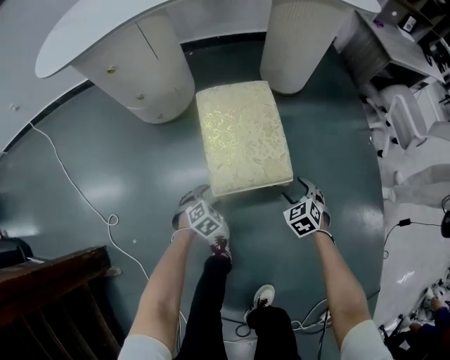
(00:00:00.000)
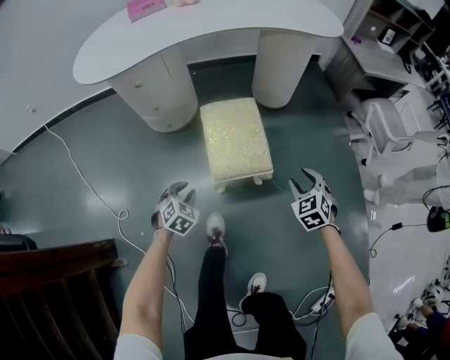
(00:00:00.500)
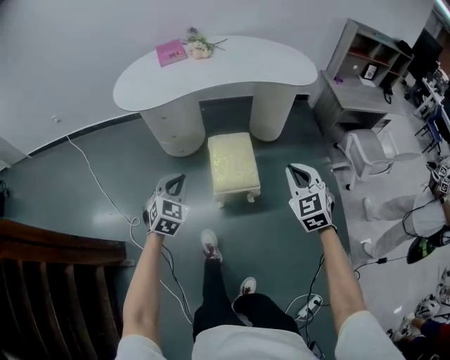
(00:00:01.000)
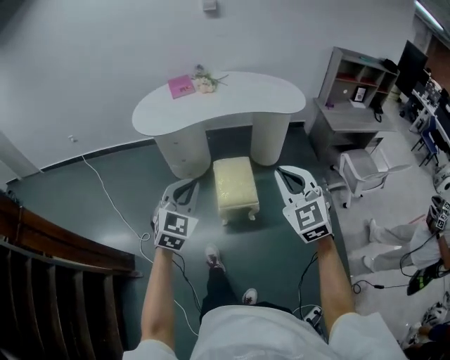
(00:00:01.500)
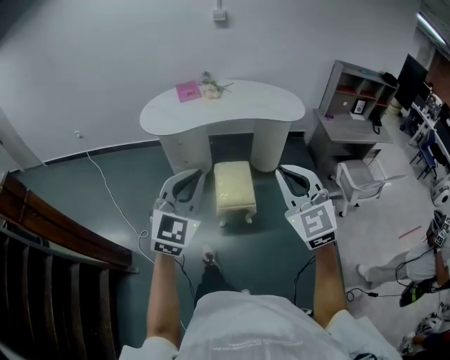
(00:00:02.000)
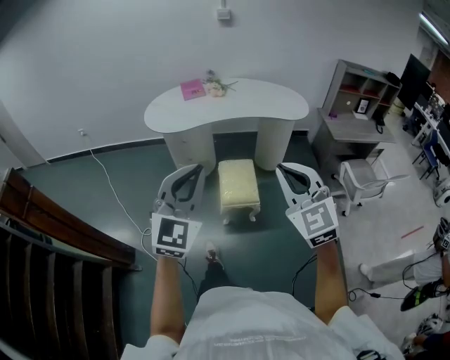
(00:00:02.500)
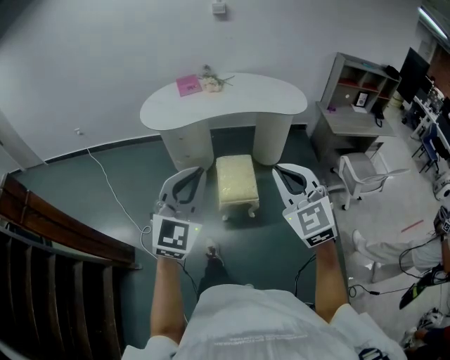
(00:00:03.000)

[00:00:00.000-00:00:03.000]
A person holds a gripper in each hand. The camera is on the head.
00:00:00.000 to 00:00:01.500: The two grippers go approximately 80 cm upward. The right gripper angles its fingers upward, by approximately 50 degrees, and closes, while the left gripper angles its fingers upward, by approximately 50 degrees, and closes.
00:00:01.500 to 00:00:03.000: The left gripper moves upward and backward, approximately 15 cm. Meanwhile the right gripper is displaced backward and upward by some 10 cm.

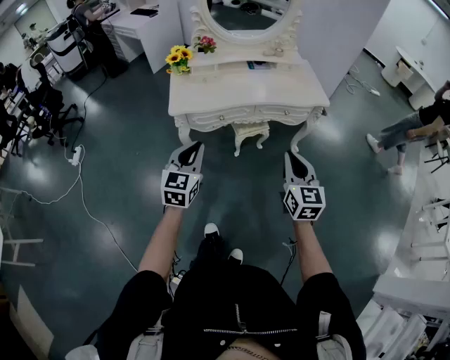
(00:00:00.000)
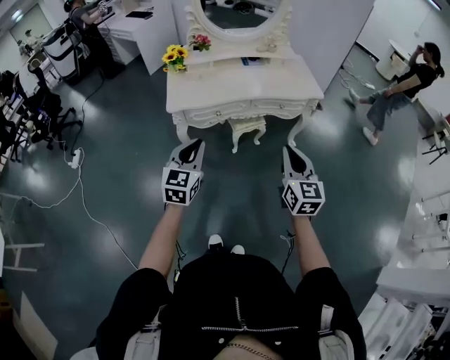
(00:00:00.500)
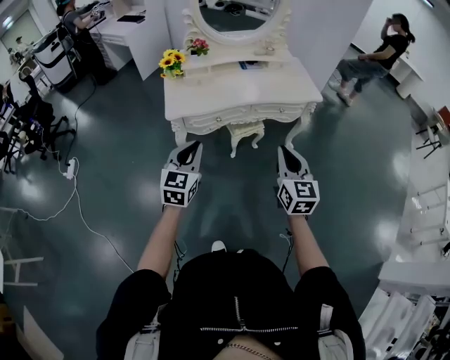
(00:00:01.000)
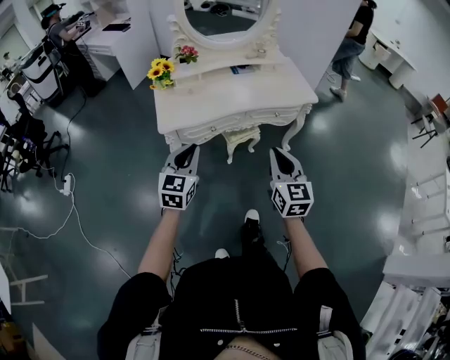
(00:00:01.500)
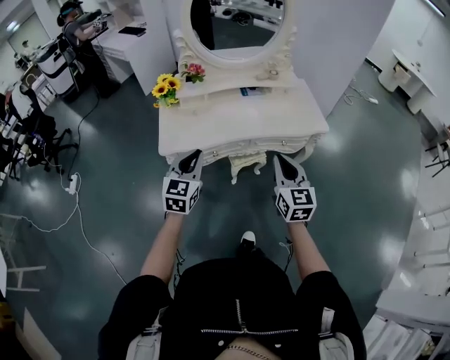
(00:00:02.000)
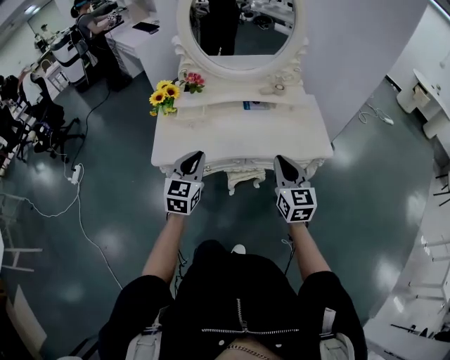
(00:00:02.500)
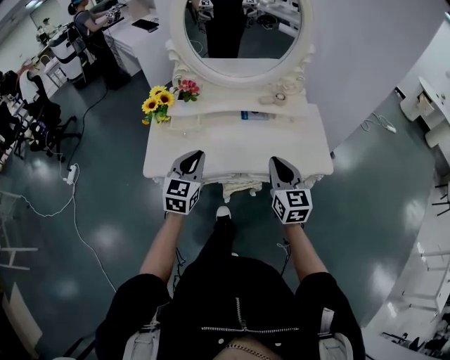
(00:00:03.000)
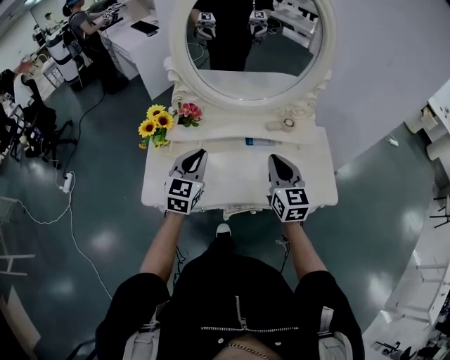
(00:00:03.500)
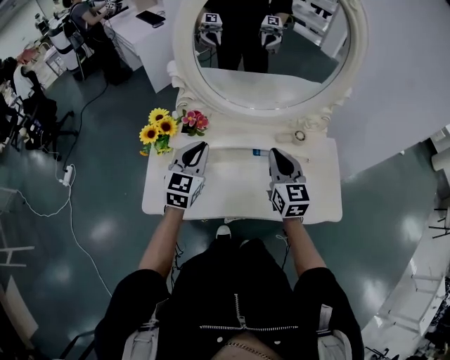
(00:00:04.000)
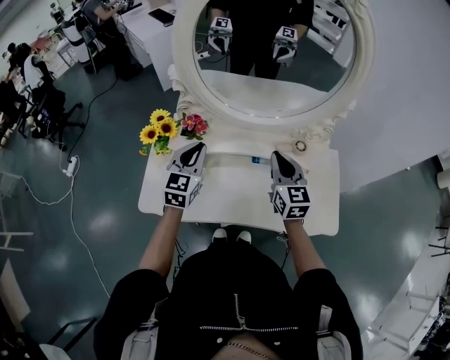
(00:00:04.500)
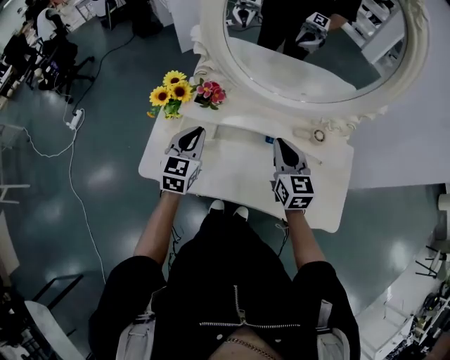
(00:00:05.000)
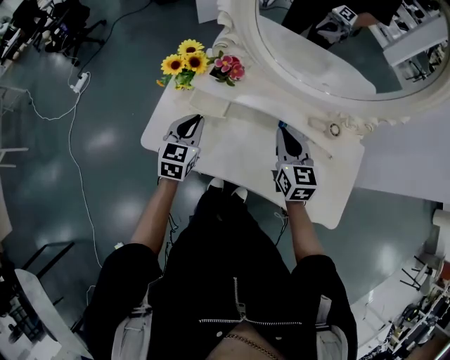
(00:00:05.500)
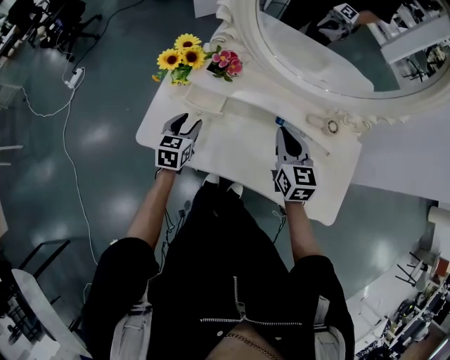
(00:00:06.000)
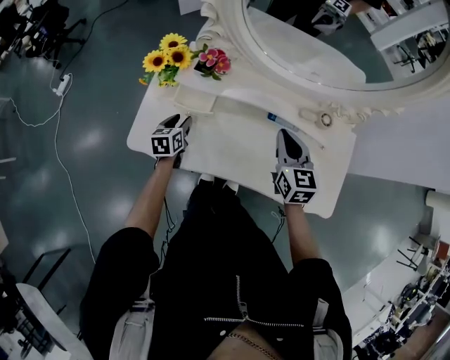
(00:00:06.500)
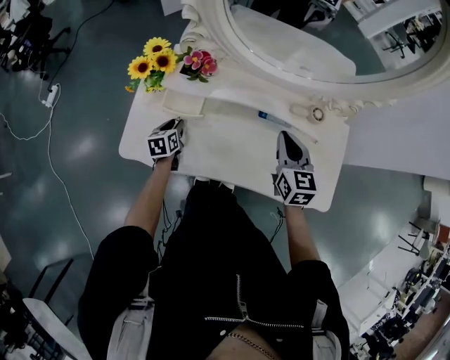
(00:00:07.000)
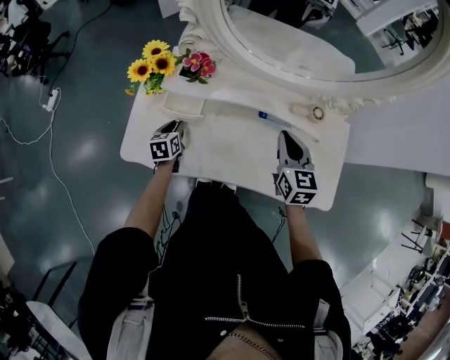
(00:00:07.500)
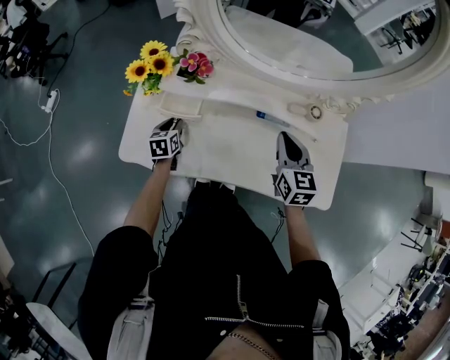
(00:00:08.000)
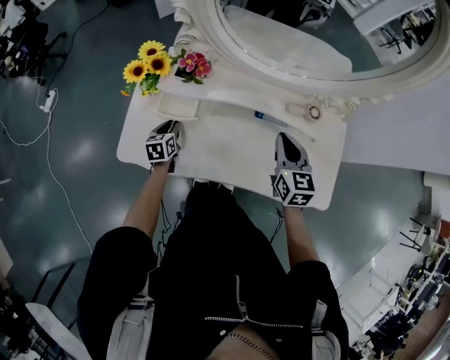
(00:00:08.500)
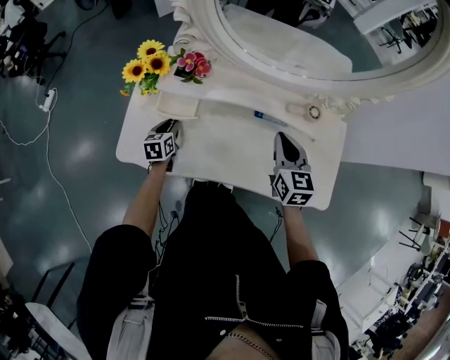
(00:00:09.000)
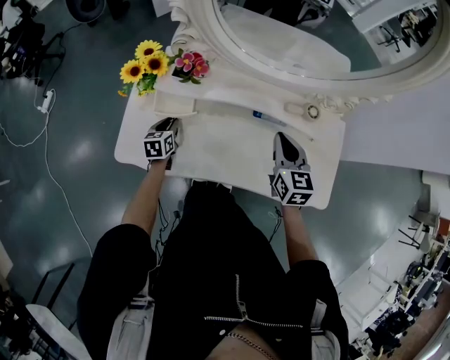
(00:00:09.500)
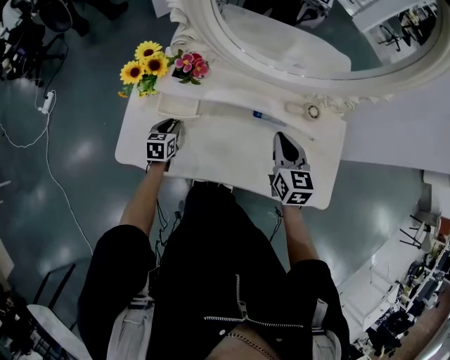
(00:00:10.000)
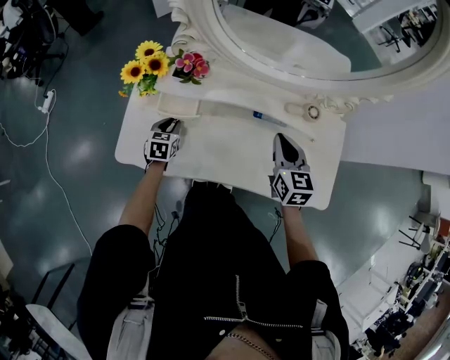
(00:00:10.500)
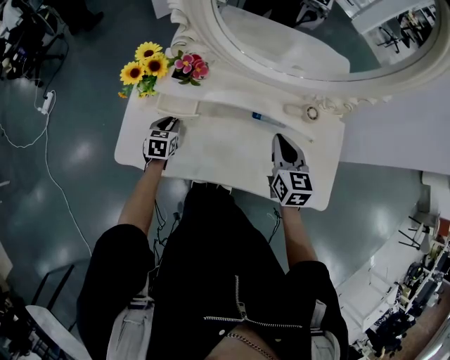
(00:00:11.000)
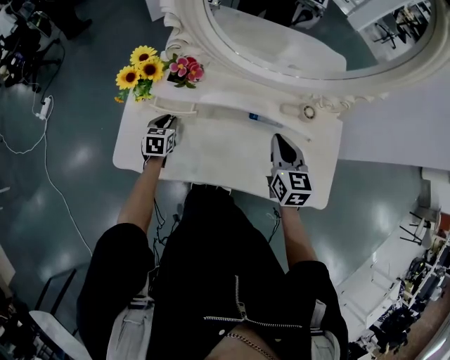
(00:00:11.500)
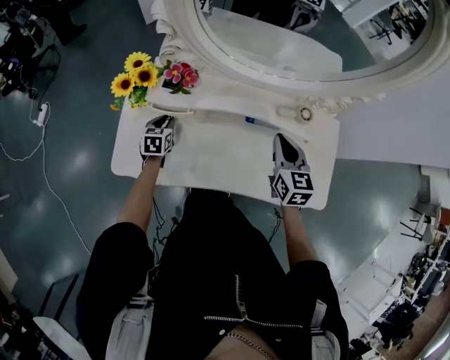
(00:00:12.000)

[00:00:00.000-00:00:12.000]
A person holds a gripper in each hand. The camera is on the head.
00:00:00.000 to 00:00:02.000: The grippers both shift forward by some 20 cm.
00:00:02.000 to 00:00:04.000: The two grippers travel together, forward, roughly 40 cm.
00:00:04.000 to 00:00:06.000: The right gripper goes about 10 cm downward. The left gripper is displaced downward and to the left by about 20 cm, rotates about 30 degrees, and opens up.
00:00:06.000 to 00:00:08.000: The right gripper is displaced to the right by about 5 cm. Meanwhile the left gripper is displaced downward by about 10 cm.
00:00:08.000 to 00:00:12.000: The grippers move only a little.

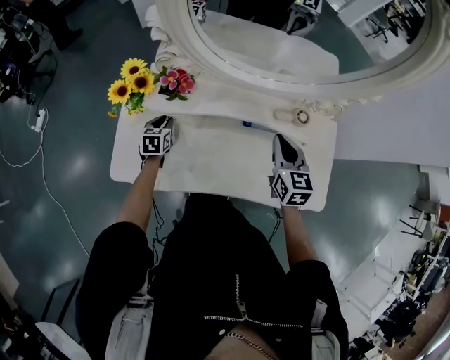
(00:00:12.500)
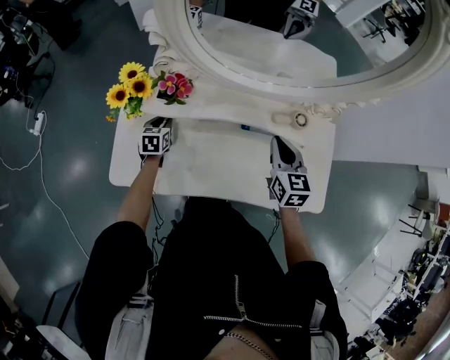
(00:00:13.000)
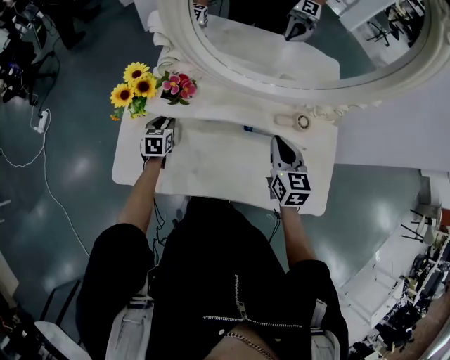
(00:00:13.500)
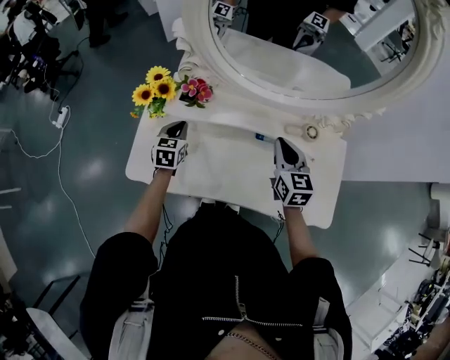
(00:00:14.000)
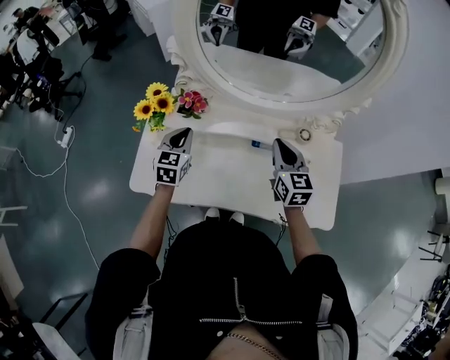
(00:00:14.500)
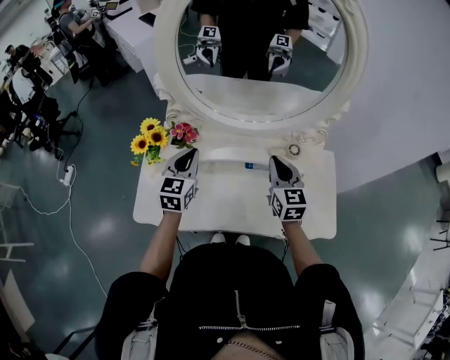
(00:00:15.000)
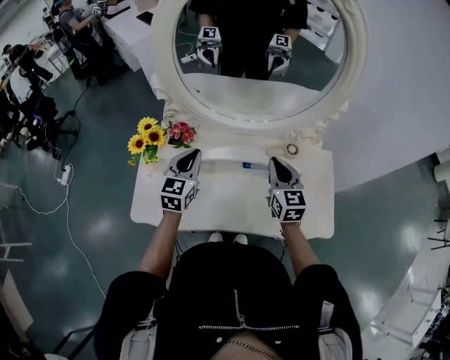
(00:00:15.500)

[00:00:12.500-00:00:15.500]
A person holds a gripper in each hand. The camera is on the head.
00:00:12.500 to 00:00:14.000: The left gripper heads upward, covering about 10 cm.
00:00:14.000 to 00:00:15.500: The left gripper travels upward and to the right by about 20 cm, and changes its angle by roughly 20 degrees. Meanwhile the right gripper ends up some 5 cm from where it was.

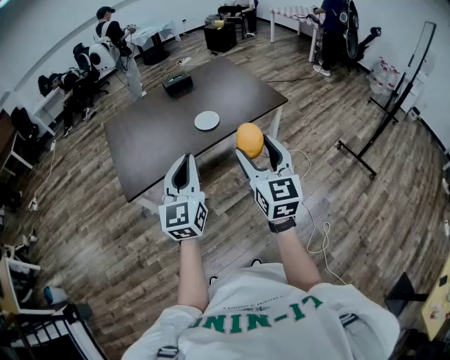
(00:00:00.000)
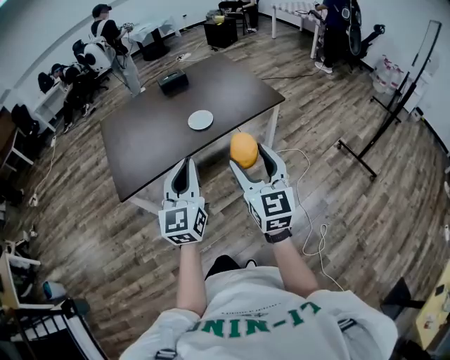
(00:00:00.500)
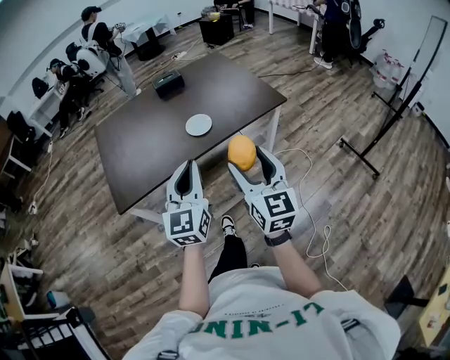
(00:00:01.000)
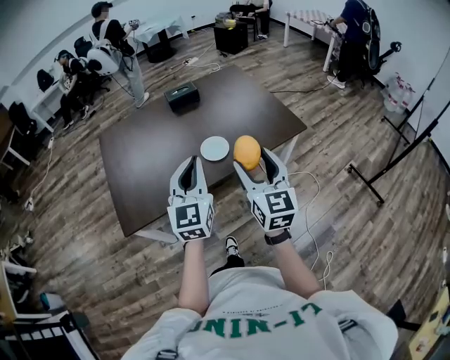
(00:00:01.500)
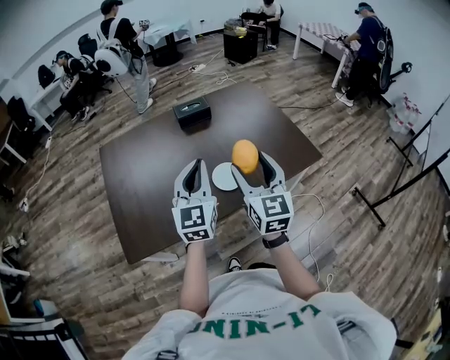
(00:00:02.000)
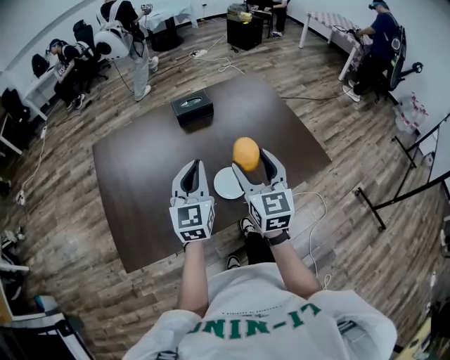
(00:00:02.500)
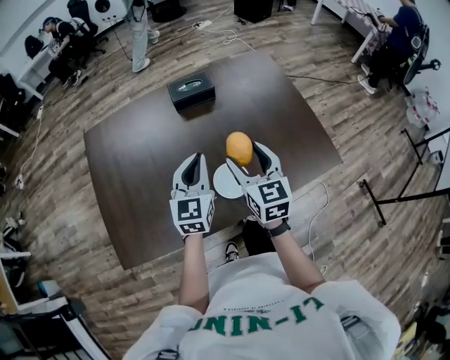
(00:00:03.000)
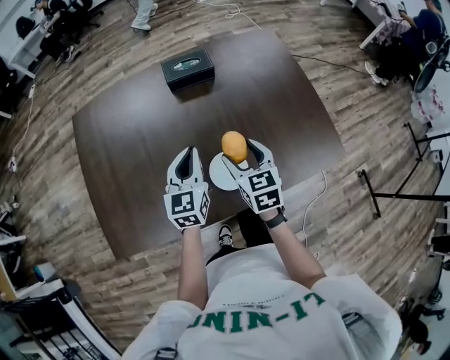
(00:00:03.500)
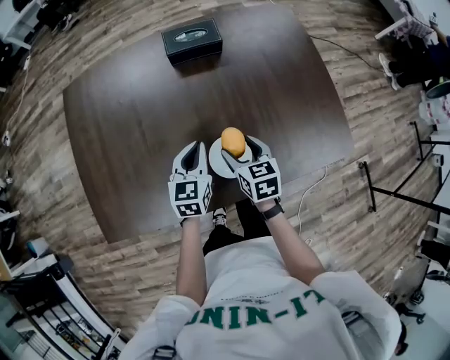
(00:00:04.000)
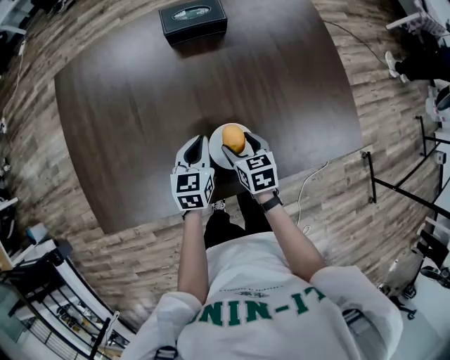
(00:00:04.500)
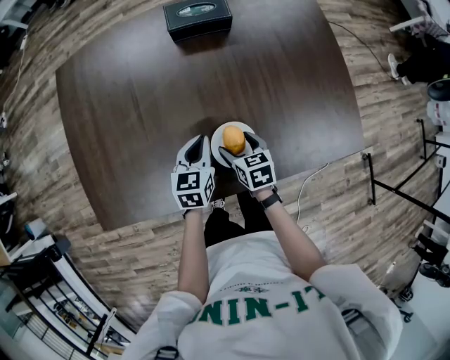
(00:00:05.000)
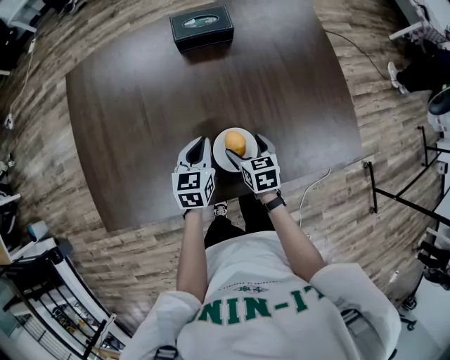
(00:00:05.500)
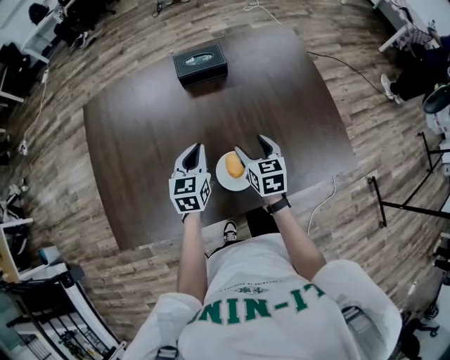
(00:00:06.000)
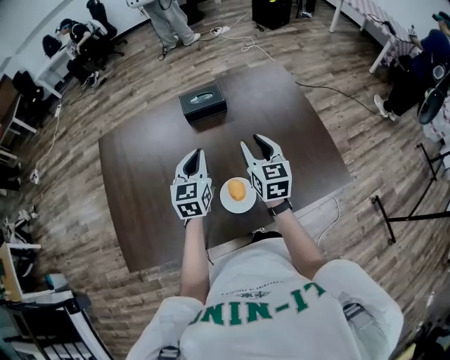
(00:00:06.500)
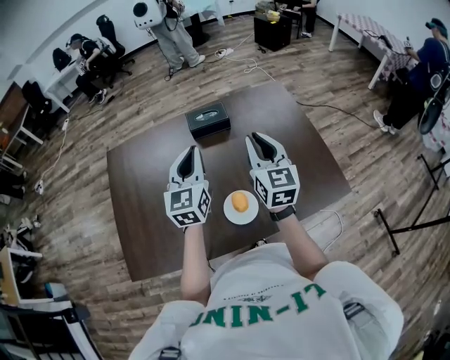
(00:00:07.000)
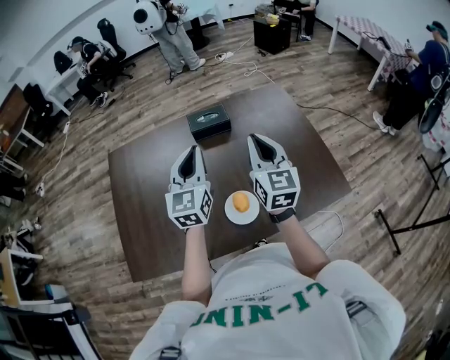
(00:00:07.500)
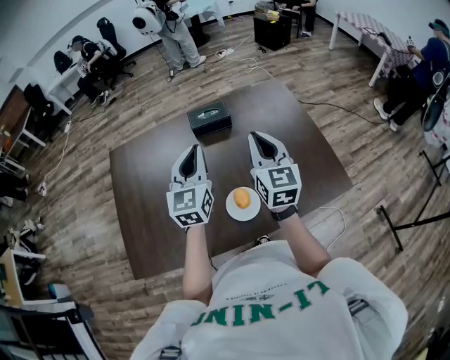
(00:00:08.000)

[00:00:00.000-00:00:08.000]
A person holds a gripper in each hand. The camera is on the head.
00:00:00.000 to 00:00:02.000: The pair of grippers is taken forward, about 40 cm.
00:00:02.000 to 00:00:04.000: Both grippers travel together downward and forward, approximately 40 cm. The right gripper tips its fingers downward by approximately 40 degrees, while the left gripper points its fingers about 30 degrees further downward.
00:00:04.000 to 00:00:06.000: The left gripper reaches about 5 cm downward, then returns. The right gripper moves some 10 cm downward and comes back.
00:00:06.000 to 00:00:08.000: Both grippers move upward, approximately 25 cm. The left gripper swivels some 30 degrees. Meanwhile the right gripper points its fingers about 30 degrees further upward, and closes.
